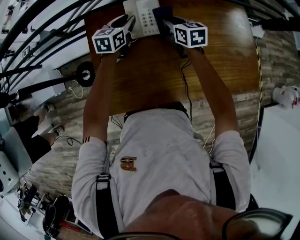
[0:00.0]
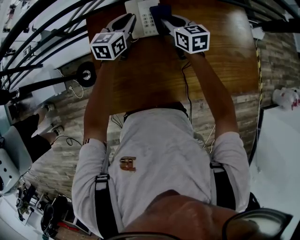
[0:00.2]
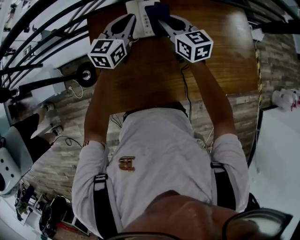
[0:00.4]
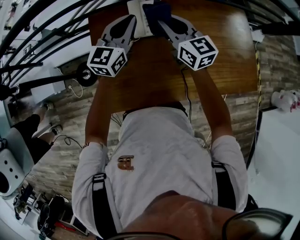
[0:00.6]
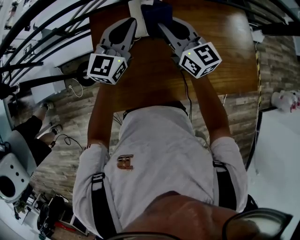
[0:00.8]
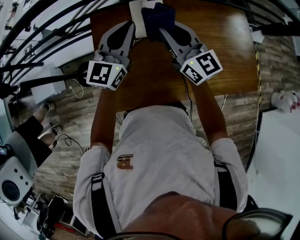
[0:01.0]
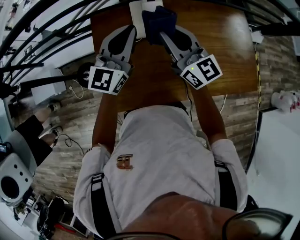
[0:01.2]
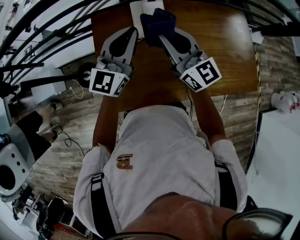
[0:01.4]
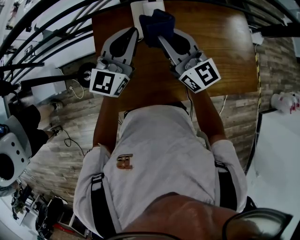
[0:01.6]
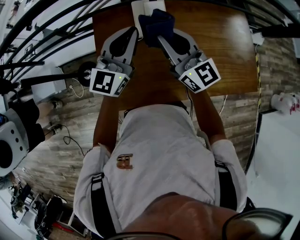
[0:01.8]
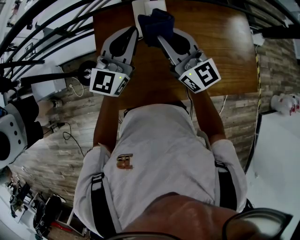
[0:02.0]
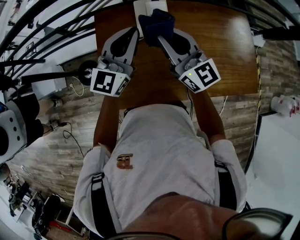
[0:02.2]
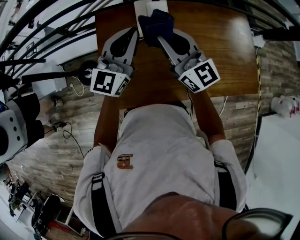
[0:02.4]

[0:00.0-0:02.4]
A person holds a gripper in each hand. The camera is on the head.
0:00.0 to 0:01.2: Both grippers travel together upward and backward, some 25 cm. The right gripper tips its fingers upward by about 40 degrees; the left gripper points its fingers roughly 30 degrees further upward, and closes its fingers.
0:01.2 to 0:02.4: The grippers make only small movements.

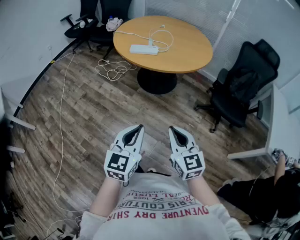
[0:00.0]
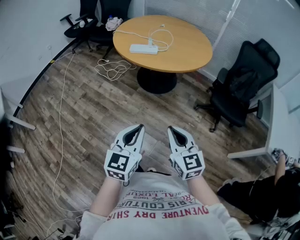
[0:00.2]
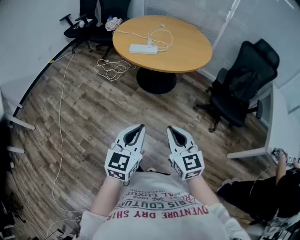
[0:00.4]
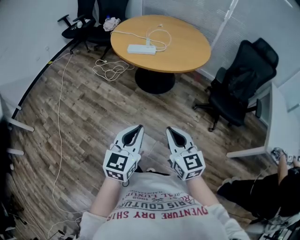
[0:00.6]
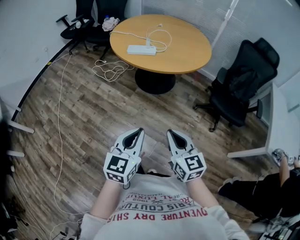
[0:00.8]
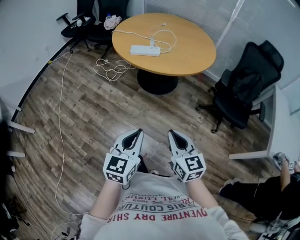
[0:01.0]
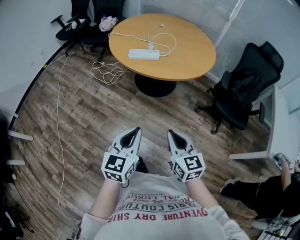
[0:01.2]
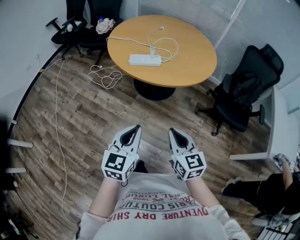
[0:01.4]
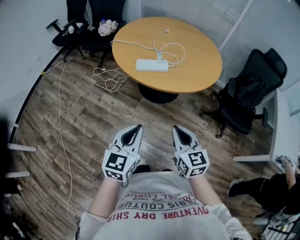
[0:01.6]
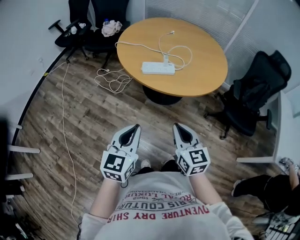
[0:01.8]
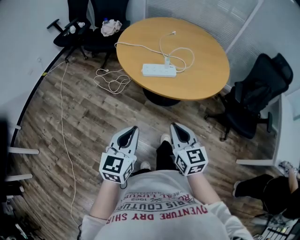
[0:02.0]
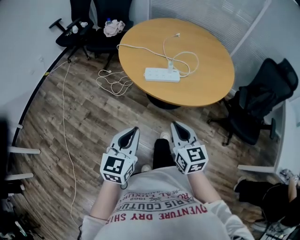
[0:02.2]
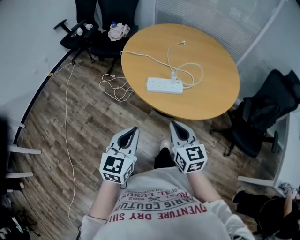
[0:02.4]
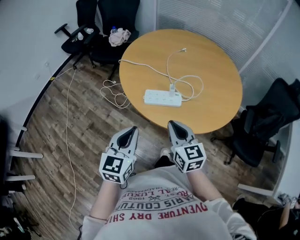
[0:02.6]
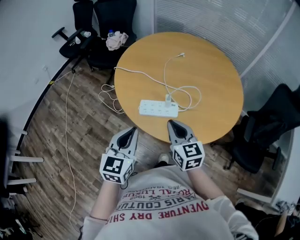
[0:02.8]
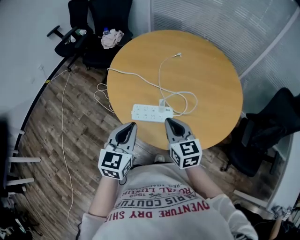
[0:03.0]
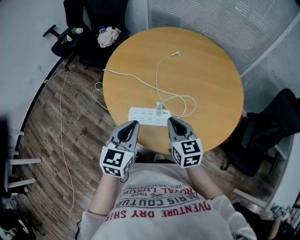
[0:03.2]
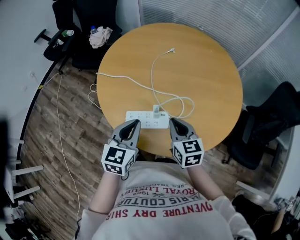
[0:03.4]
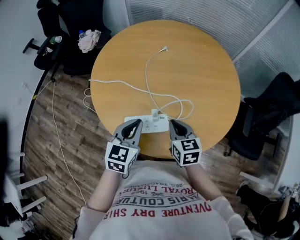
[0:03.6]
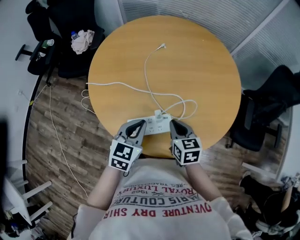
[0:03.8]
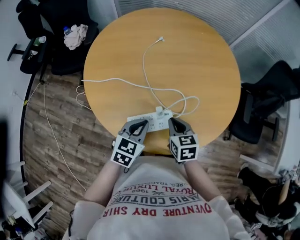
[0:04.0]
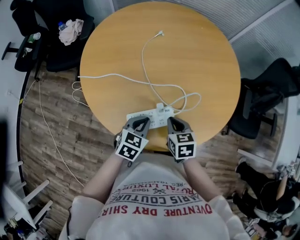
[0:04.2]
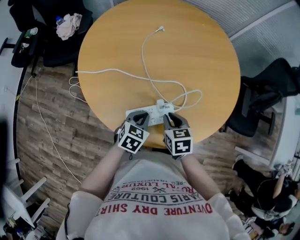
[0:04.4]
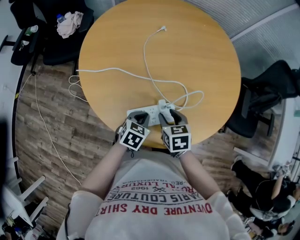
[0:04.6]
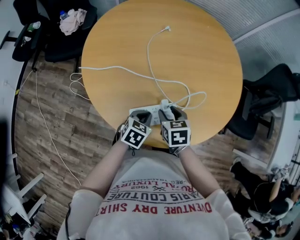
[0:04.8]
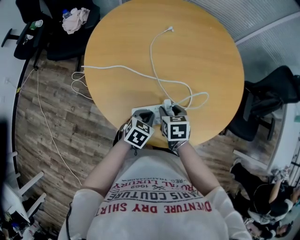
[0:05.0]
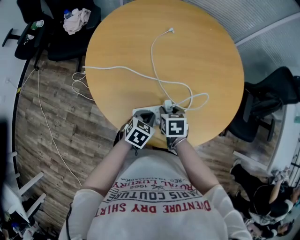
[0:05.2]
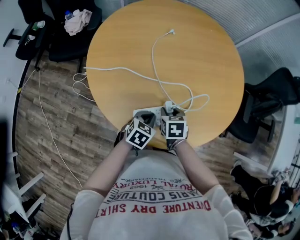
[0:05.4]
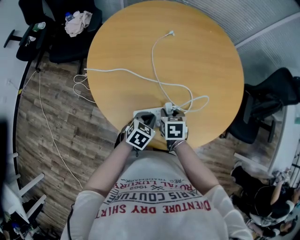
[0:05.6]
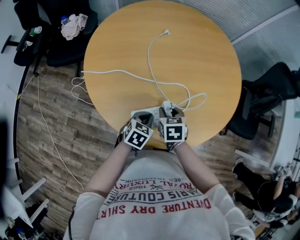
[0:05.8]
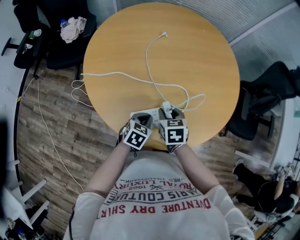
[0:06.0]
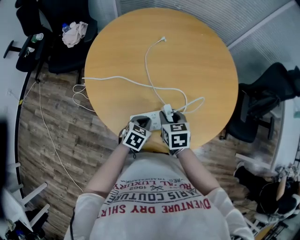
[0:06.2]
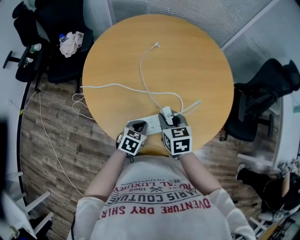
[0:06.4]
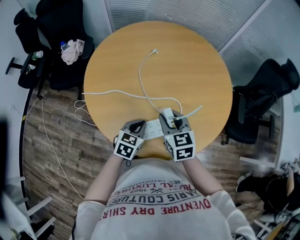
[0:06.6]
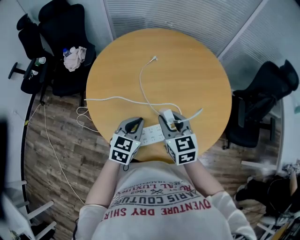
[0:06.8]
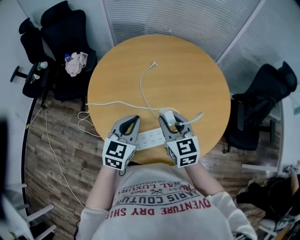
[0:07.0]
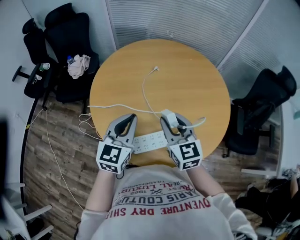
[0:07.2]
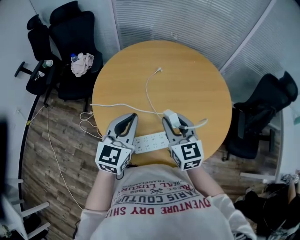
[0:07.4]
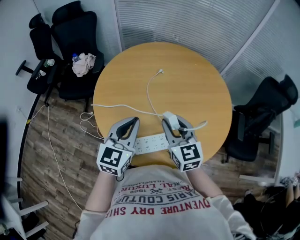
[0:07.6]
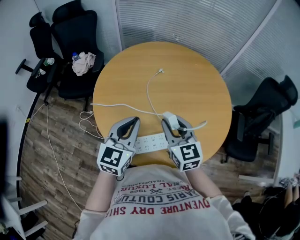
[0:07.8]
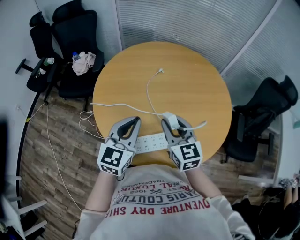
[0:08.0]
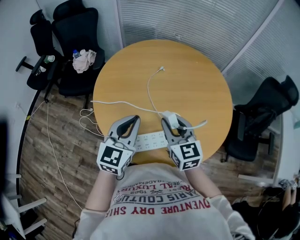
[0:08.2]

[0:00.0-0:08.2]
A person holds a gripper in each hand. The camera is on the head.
0:00.0 to 0:01.6: Both grippers move forward and to the left, roughly 25 cm.
0:01.6 to 0:03.2: The two grippers travel together, forward, roughly 40 cm.
0:03.2 to 0:05.0: Both grippers travel together downward, about 20 cm. The left gripper turns by roughly 50 degrees, while the right gripper points its fingers approximately 30 degrees further downward, and opens.
0:05.0 to 0:06.6: The right gripper heads upward, covering about 15 cm, and rotates approximately 30 degrees; the left gripper is displaced upward by roughly 5 cm.
0:06.6 to 0:08.2: The right gripper goes some 10 cm upward. Meanwhile the left gripper shifts roughly 20 cm upward, and changes its angle by about 30 degrees.

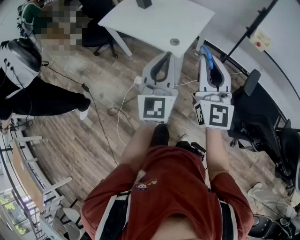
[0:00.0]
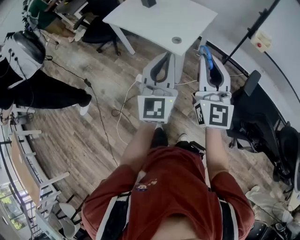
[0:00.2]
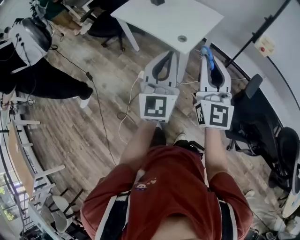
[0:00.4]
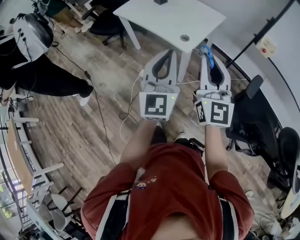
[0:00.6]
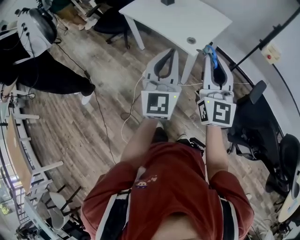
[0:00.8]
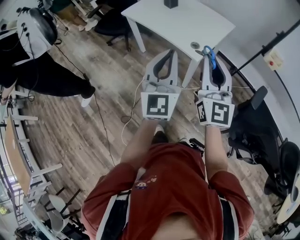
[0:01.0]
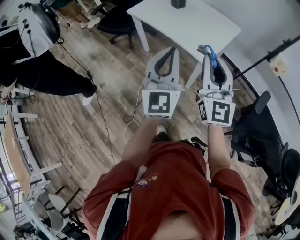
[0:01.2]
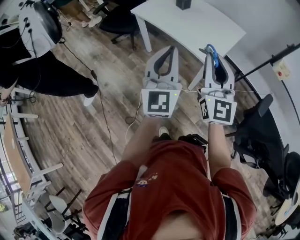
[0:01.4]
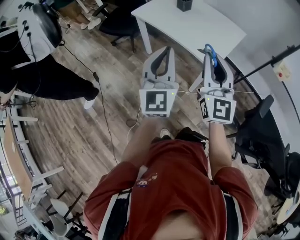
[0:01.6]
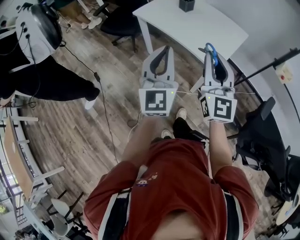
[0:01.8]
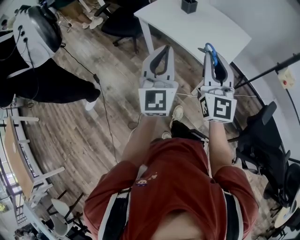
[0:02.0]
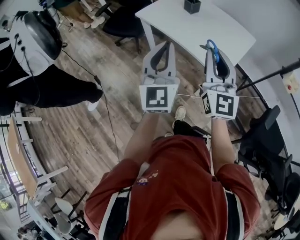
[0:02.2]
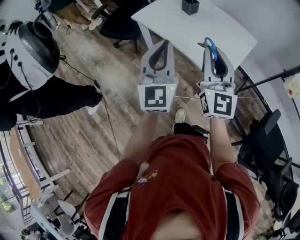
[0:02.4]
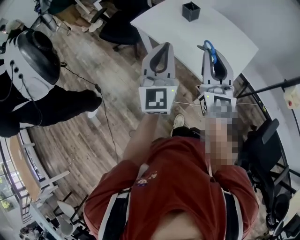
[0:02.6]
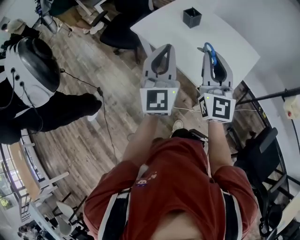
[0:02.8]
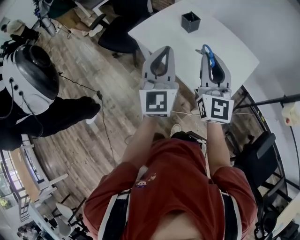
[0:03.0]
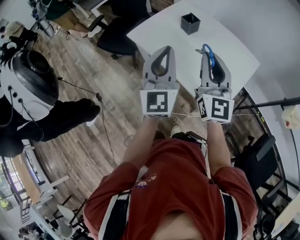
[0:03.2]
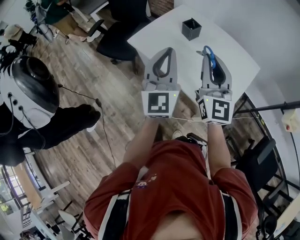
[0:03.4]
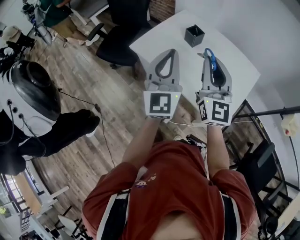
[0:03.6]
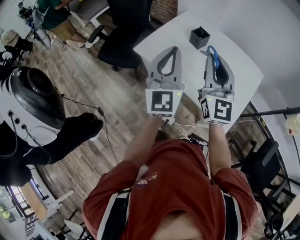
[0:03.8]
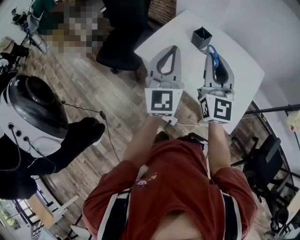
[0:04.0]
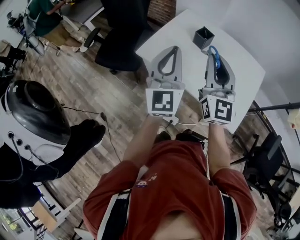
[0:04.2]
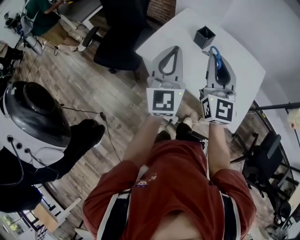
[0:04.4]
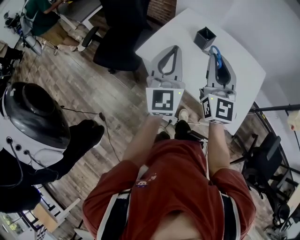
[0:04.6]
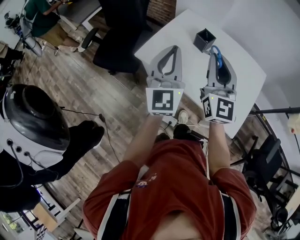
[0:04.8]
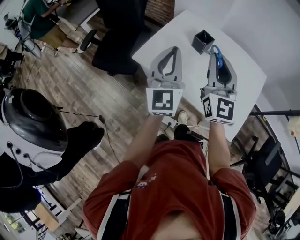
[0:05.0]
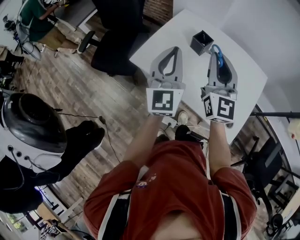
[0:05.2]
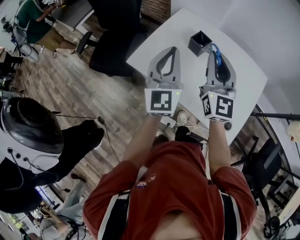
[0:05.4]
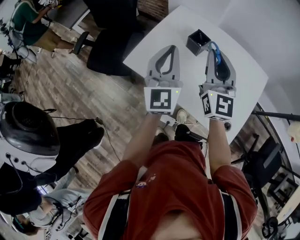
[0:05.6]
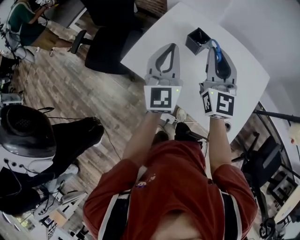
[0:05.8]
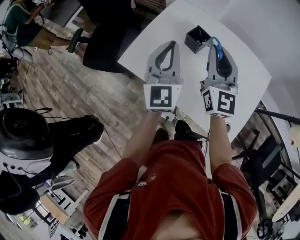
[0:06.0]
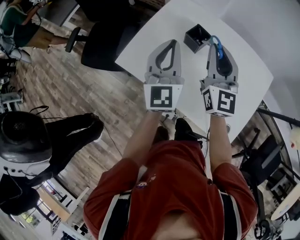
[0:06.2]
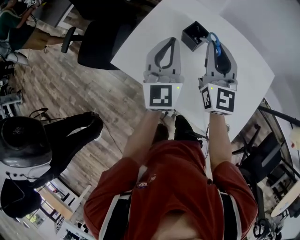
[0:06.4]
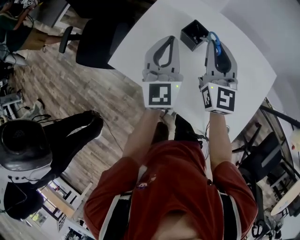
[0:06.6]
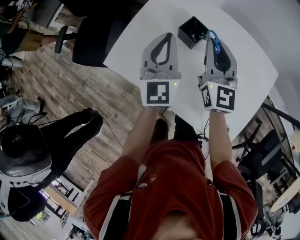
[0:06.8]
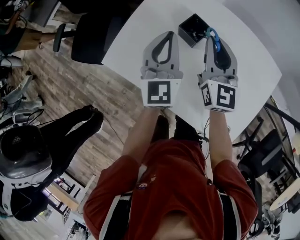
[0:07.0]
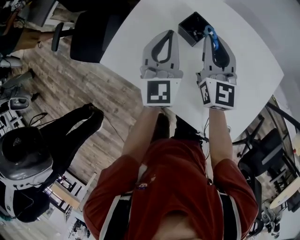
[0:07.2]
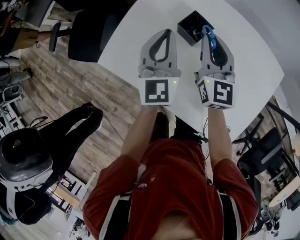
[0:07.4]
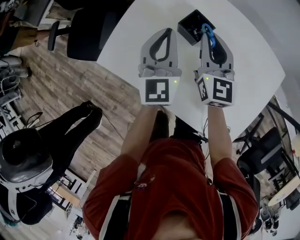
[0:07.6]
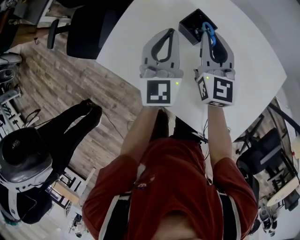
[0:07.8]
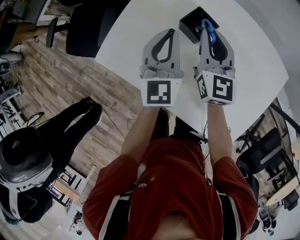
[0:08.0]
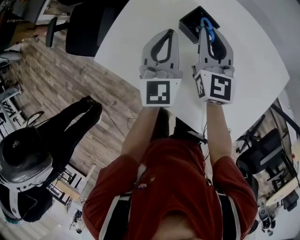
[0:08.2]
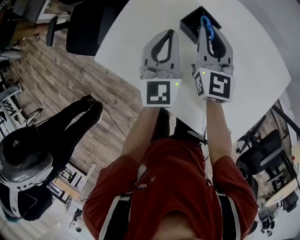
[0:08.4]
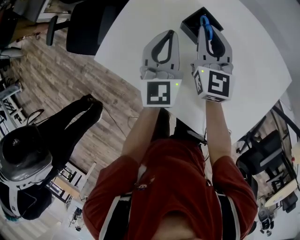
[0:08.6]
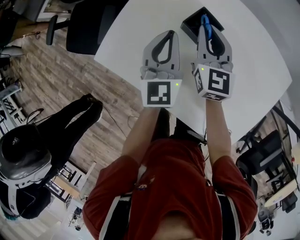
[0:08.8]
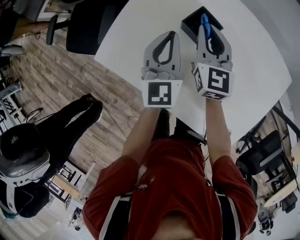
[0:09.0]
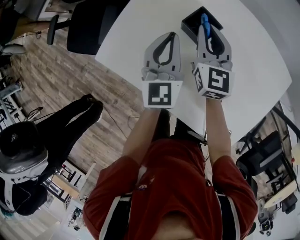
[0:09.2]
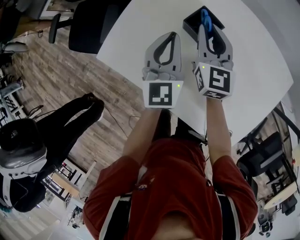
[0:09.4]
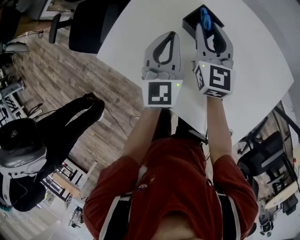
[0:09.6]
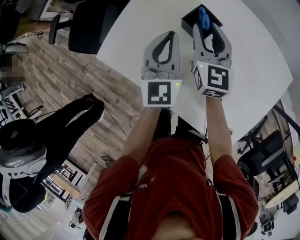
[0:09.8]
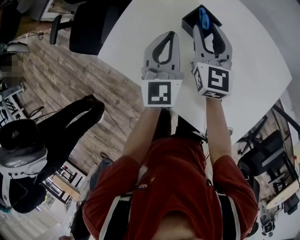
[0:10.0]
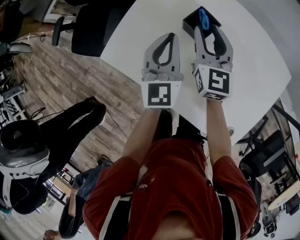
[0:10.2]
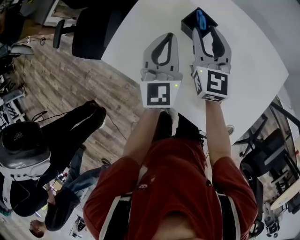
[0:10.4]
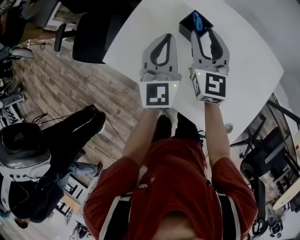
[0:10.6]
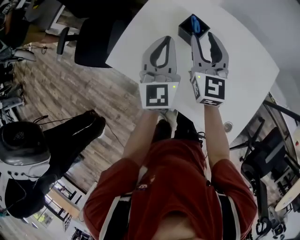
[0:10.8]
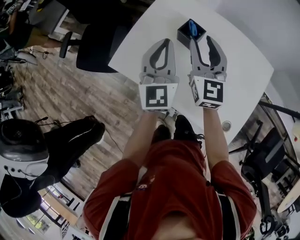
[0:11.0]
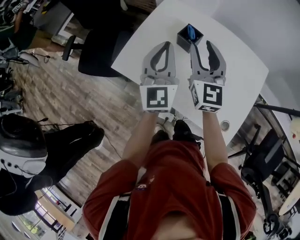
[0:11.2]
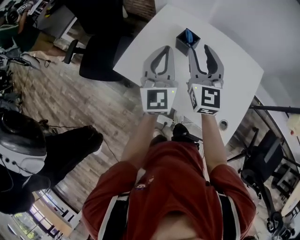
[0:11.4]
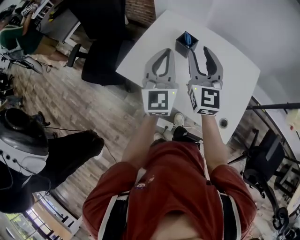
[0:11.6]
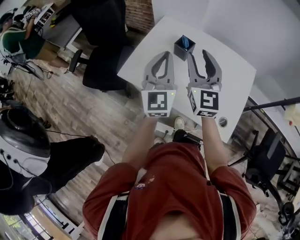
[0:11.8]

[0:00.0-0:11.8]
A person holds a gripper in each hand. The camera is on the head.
0:00.0 to 0:01.4: Both grippers move to the left, roughly 20 cm.
0:01.4 to 0:03.0: The two grippers go roughly 30 cm forward.
0:03.0 to 0:04.4: Both grippers move forward and to the left, roughly 20 cm.
0:04.4 to 0:06.0: Both grippers travel together forward, some 20 cm.
0:06.0 to 0:07.4: Both grippers travel together downward and forward, about 15 cm.
0:07.4 to 0:08.8: Both grippers travel together downward, about 5 cm.
0:08.8 to 0:10.4: The right gripper ends up approximately 5 cm from where it was, and opens. The left gripper shifts by approximately 5 cm.
0:10.4 to 0:11.8: The left gripper travels upward and backward by approximately 20 cm, while the right gripper shifts approximately 25 cm backward and upward.

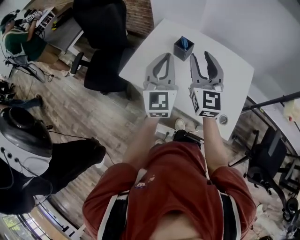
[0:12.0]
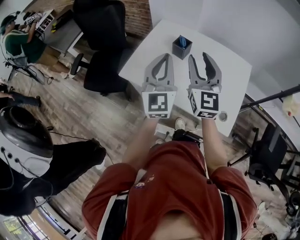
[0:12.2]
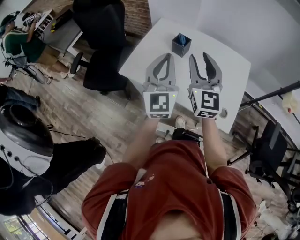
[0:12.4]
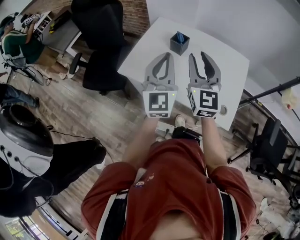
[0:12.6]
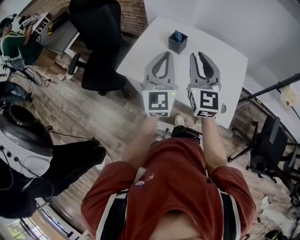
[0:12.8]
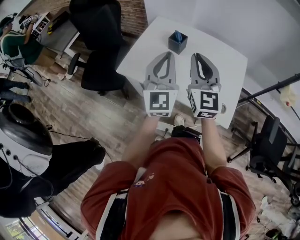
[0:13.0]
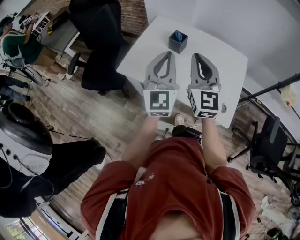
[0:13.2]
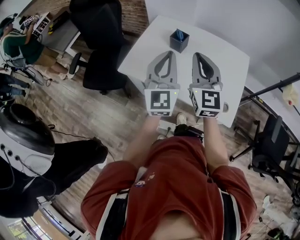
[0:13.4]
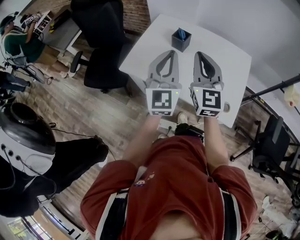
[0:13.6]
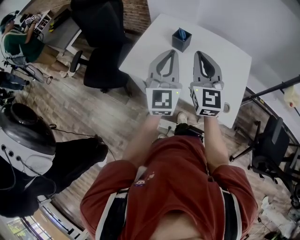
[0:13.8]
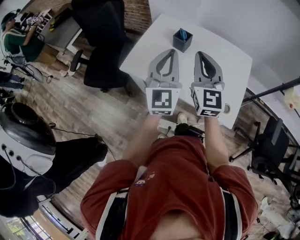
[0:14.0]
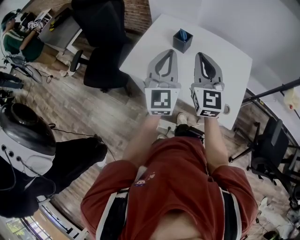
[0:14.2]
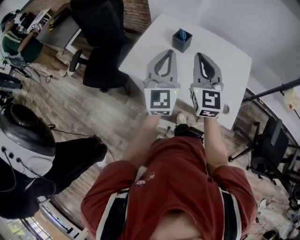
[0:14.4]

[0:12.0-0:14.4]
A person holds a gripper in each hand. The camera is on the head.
0:12.0 to 0:13.2: The grippers both shift backward by approximately 5 cm. The right gripper closes up.
0:13.2 to 0:14.4: The grippers stay close to where they were, moving slightly.
